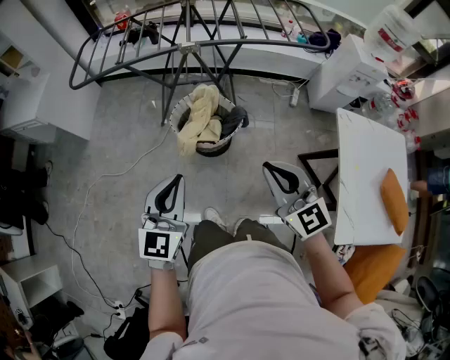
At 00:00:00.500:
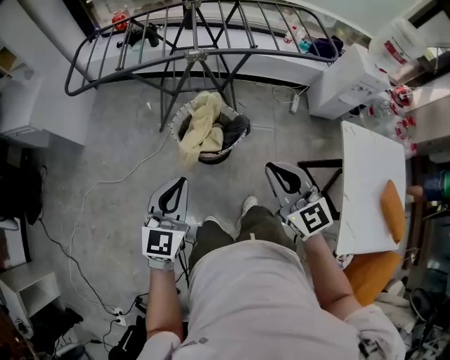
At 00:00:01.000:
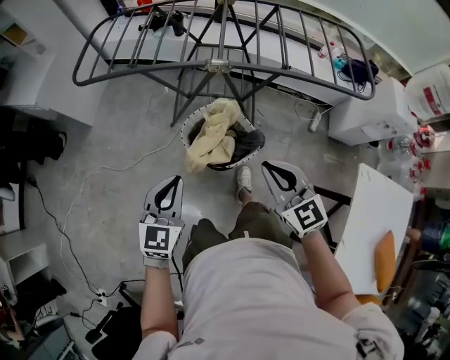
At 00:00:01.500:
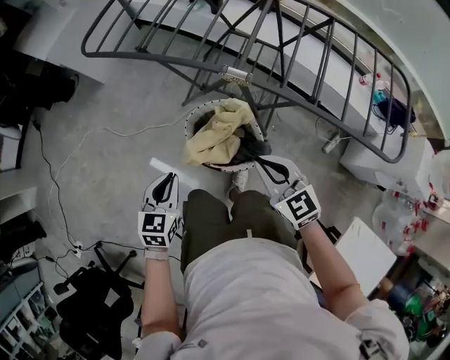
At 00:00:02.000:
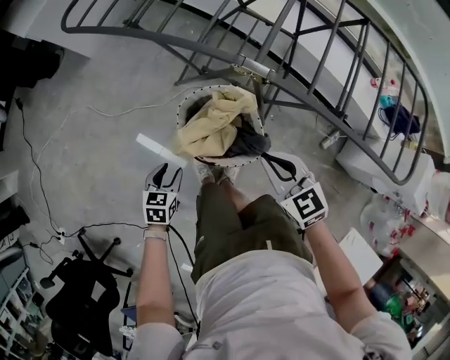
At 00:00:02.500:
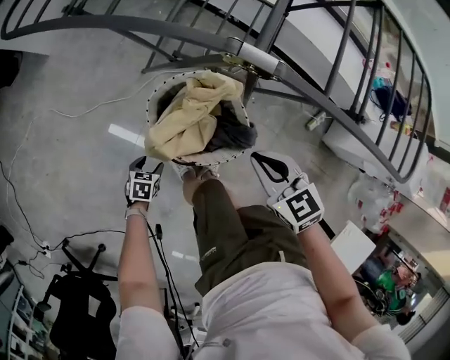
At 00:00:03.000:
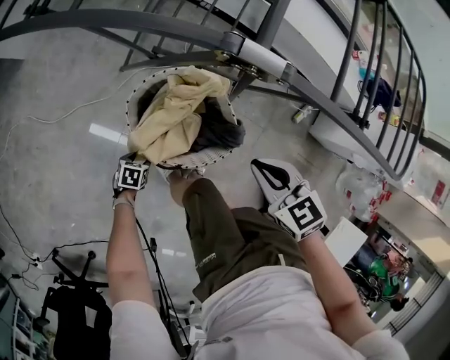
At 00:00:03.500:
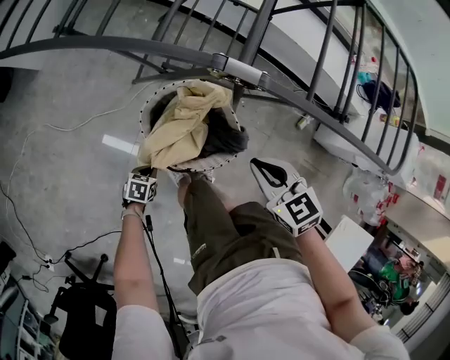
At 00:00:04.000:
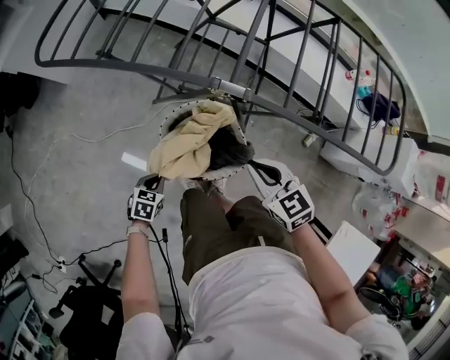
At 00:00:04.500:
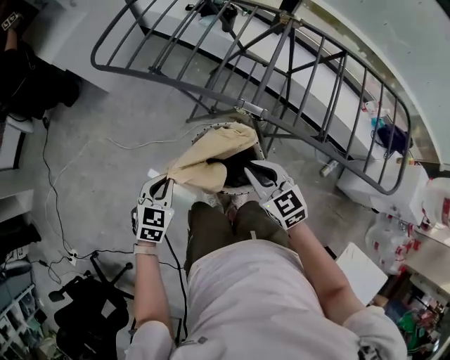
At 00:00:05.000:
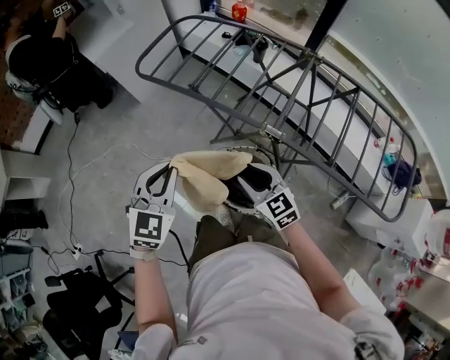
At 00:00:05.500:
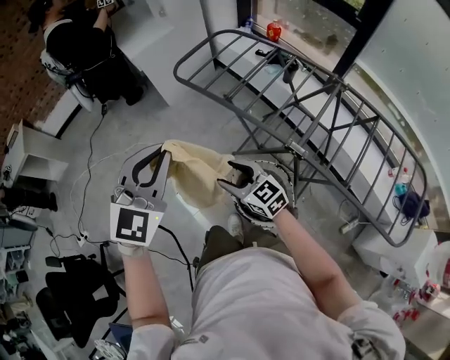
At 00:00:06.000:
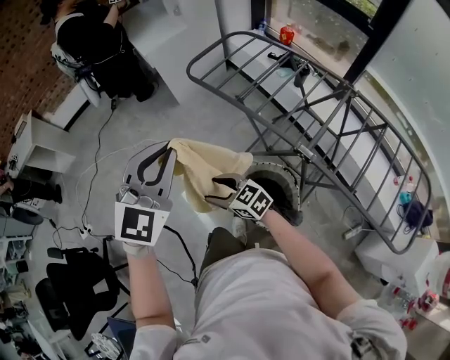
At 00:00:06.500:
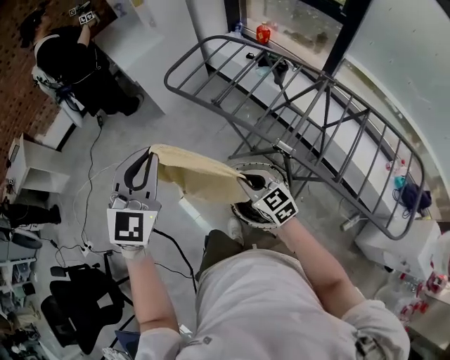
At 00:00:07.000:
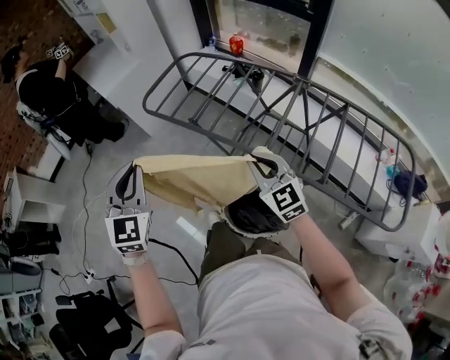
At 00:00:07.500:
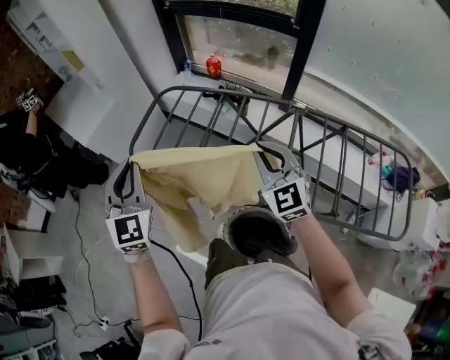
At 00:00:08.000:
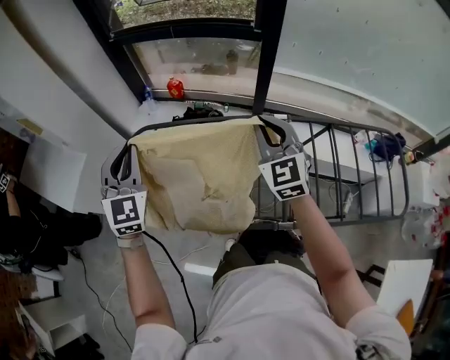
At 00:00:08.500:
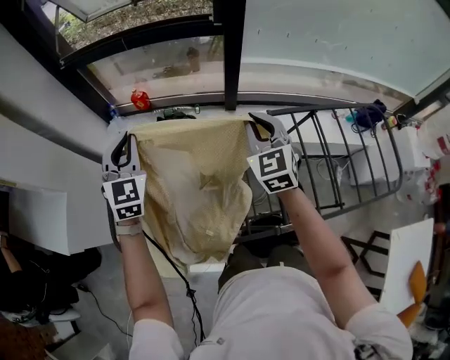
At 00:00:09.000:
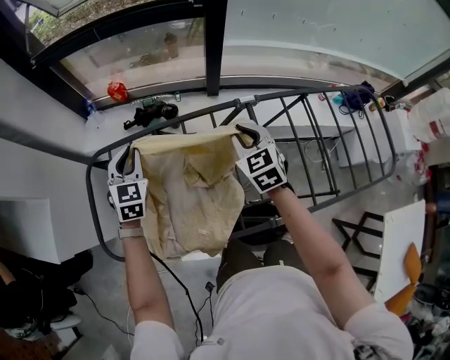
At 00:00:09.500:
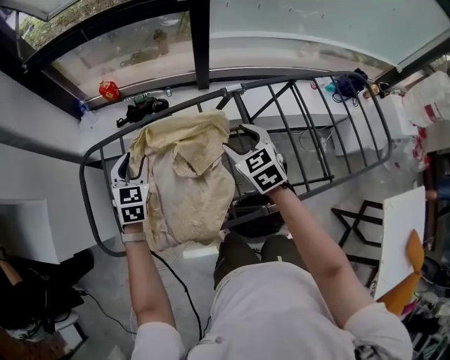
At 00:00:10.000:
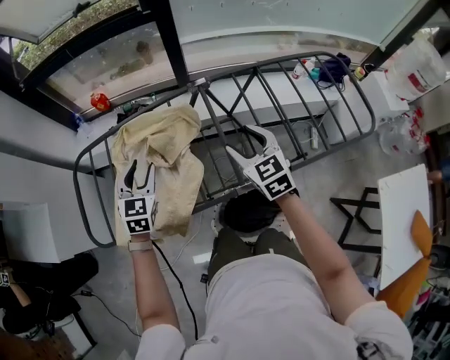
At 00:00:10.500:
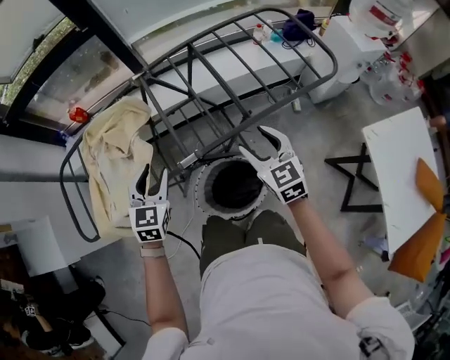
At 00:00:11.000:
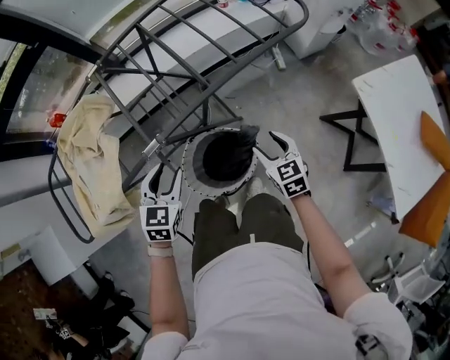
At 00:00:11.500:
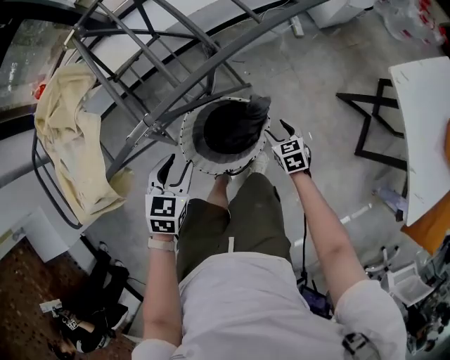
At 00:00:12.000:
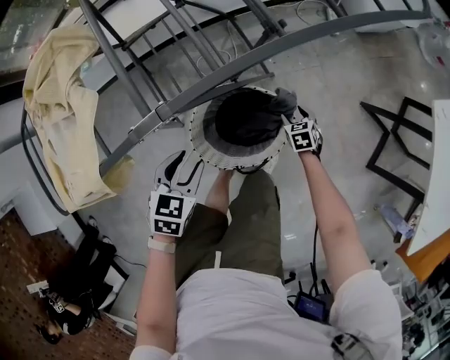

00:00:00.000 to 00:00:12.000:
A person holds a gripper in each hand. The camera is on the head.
00:00:00.000 to 00:00:02.000: The left gripper goes about 35 cm downward, points its fingers some 50 degrees further downward, and opens. The right gripper shifts by roughly 50 cm, and turns by approximately 40 degrees.
00:00:02.000 to 00:00:04.000: The right gripper reaches roughly 10 cm downward, then returns. The left gripper moves roughly 30 cm downward and comes back, turns by some 20 degrees, and closes its fingers.
00:00:04.000 to 00:00:06.000: The left gripper heads upward, covering roughly 60 cm, and tips its fingers upward by approximately 50 degrees, while the right gripper shifts by approximately 35 cm, turns by some 50 degrees, and opens up.
00:00:06.000 to 00:00:08.000: Both grippers are carried approximately 50 cm. The right gripper rotates about 90 degrees, and closes its fingers.
00:00:08.000 to 00:00:10.000: The right gripper shifts roughly 25 cm downward, to the right and backward, changes its angle by roughly 30 degrees, and opens up, while the left gripper moves downward and to the right, roughly 25 cm, swivels some 30 degrees, and opens its fingers.
00:00:10.000 to 00:00:12.000: The right gripper is displaced downward by approximately 60 cm, and tips its fingers downward by about 40 degrees. Meanwhile the left gripper changes place by roughly 50 cm, and angles its fingers downward, by about 30 degrees.

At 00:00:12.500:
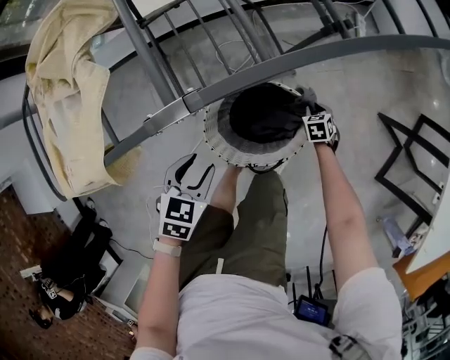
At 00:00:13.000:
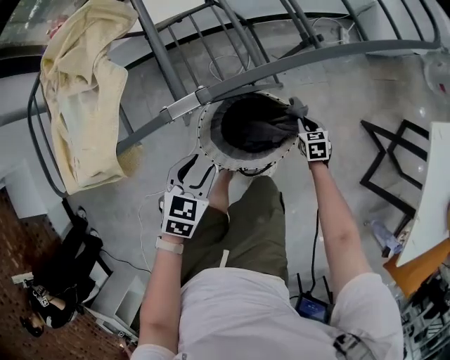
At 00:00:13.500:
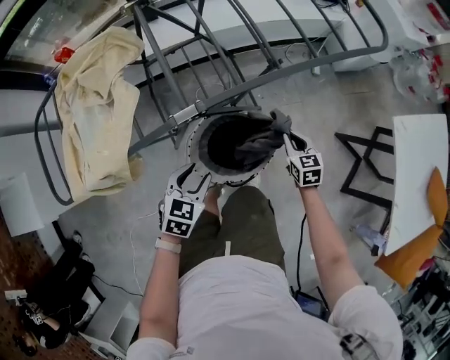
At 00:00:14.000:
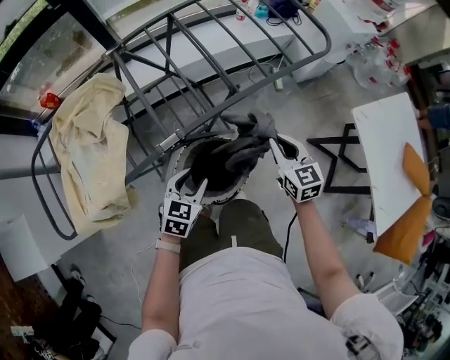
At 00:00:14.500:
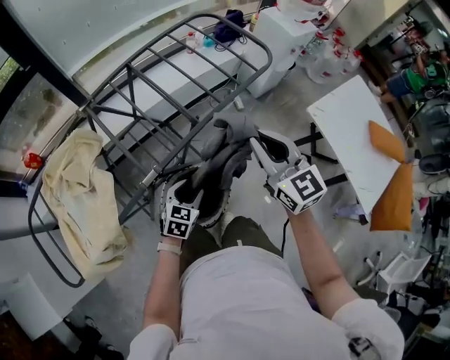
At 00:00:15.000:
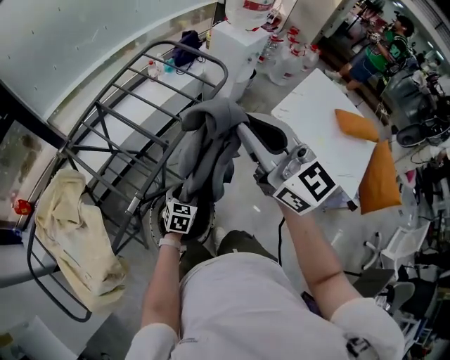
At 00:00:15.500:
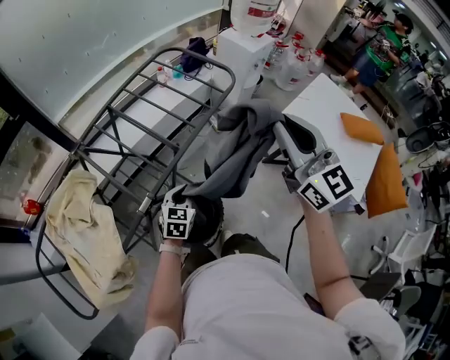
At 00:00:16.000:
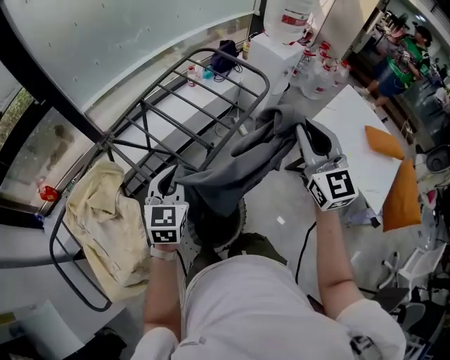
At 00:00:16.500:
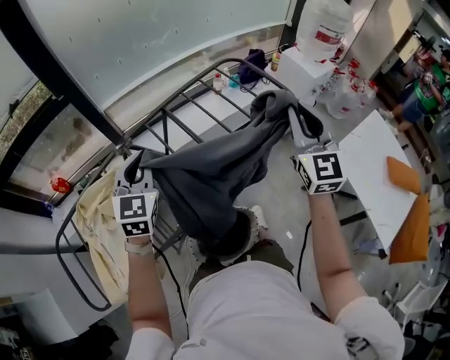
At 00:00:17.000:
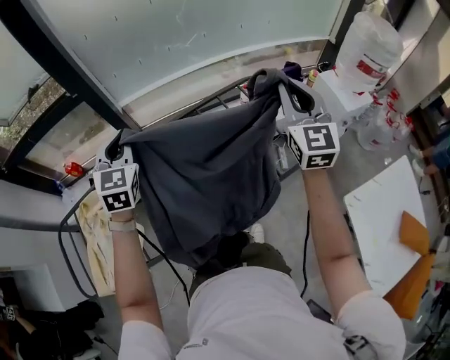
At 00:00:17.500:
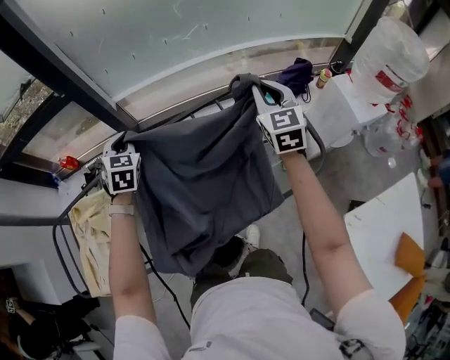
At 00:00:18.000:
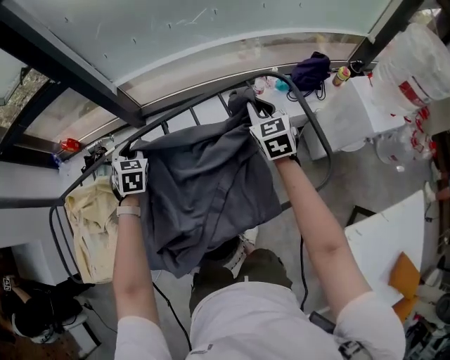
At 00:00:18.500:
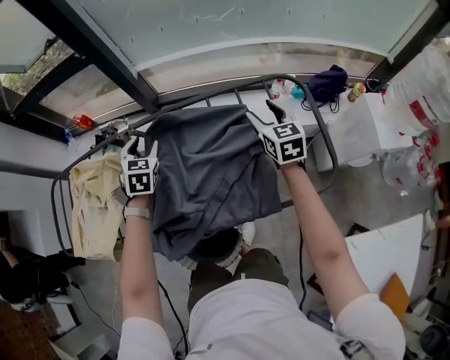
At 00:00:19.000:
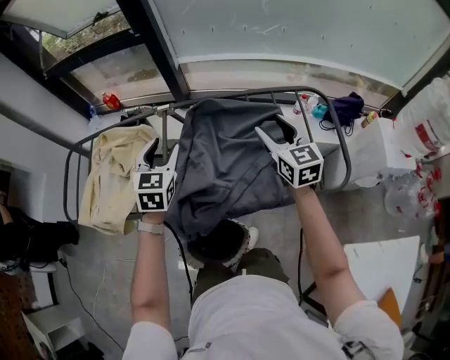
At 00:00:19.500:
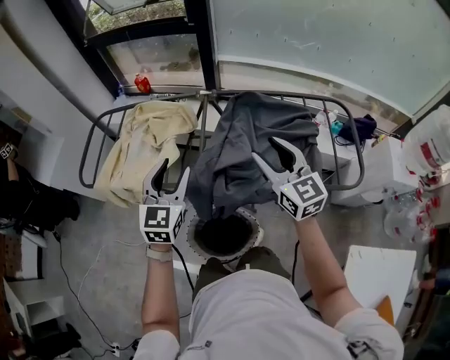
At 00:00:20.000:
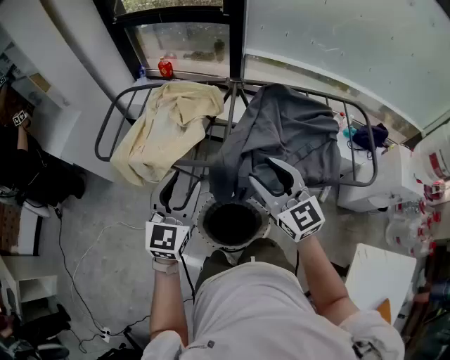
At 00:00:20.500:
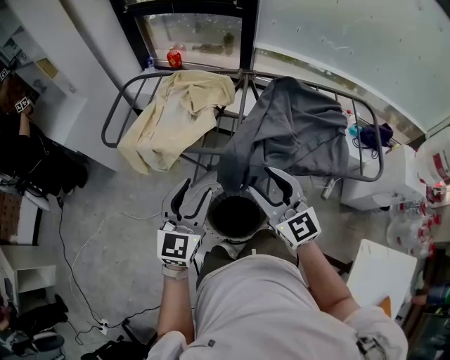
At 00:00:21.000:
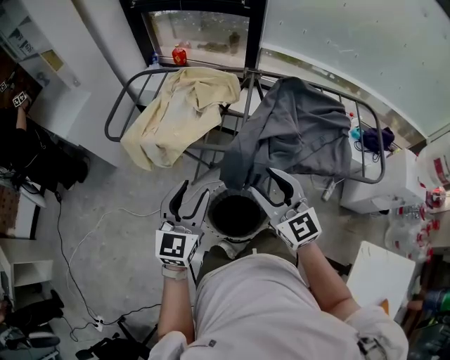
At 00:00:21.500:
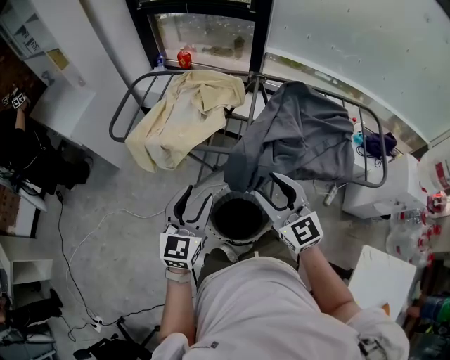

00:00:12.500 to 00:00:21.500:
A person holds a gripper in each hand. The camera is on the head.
00:00:12.500 to 00:00:14.500: The left gripper shifts about 20 cm upward, to the right and forward, and turns by approximately 30 degrees; the right gripper travels upward by about 70 cm, and tips its fingers upward by some 60 degrees.
00:00:14.500 to 00:00:17.000: The right gripper ends up about 40 cm from where it was, and rotates approximately 20 degrees, while the left gripper changes place by some 50 cm, turns by roughly 50 degrees, and closes up.
00:00:17.000 to 00:00:19.500: The right gripper ends up roughly 30 cm from where it was, rotates roughly 50 degrees, and opens. The left gripper moves about 25 cm downward and comes back, turns by roughly 30 degrees, and opens its fingers.
00:00:19.500 to 00:00:21.500: The right gripper shifts approximately 25 cm to the left and backward; the left gripper heads backward and to the left, covering some 20 cm.

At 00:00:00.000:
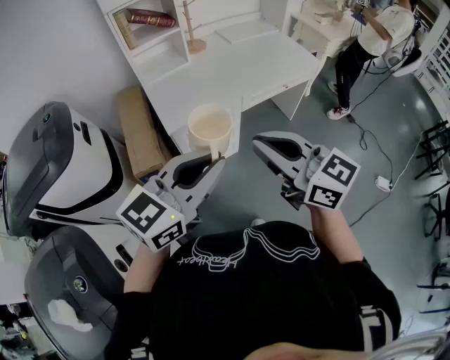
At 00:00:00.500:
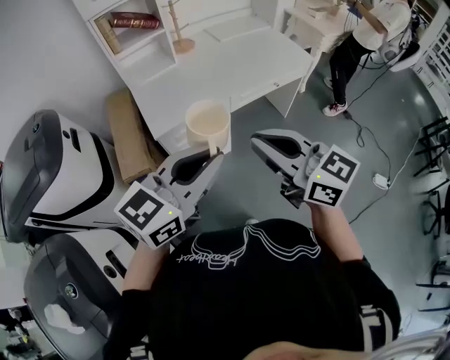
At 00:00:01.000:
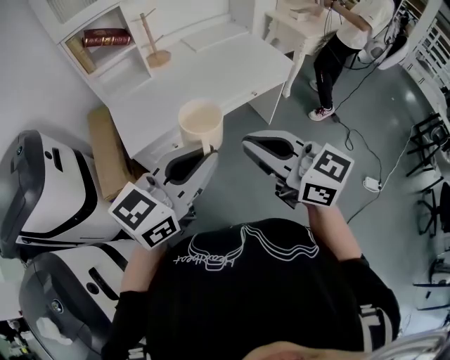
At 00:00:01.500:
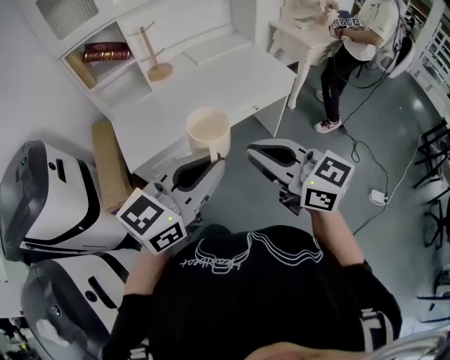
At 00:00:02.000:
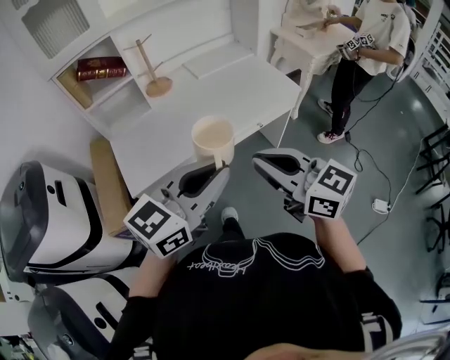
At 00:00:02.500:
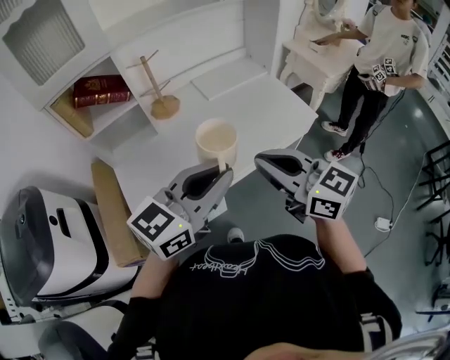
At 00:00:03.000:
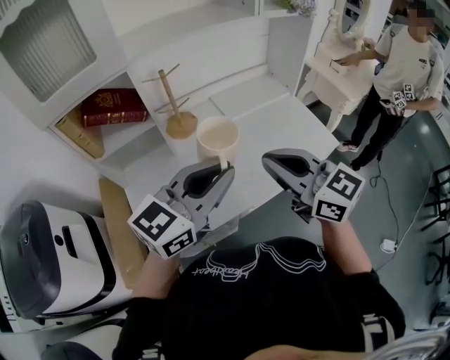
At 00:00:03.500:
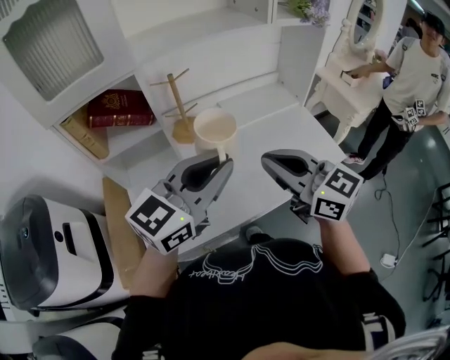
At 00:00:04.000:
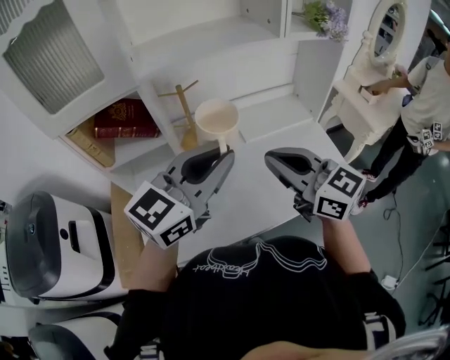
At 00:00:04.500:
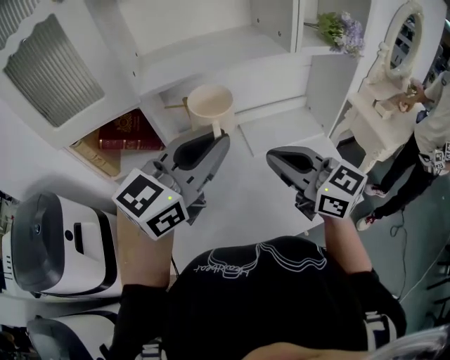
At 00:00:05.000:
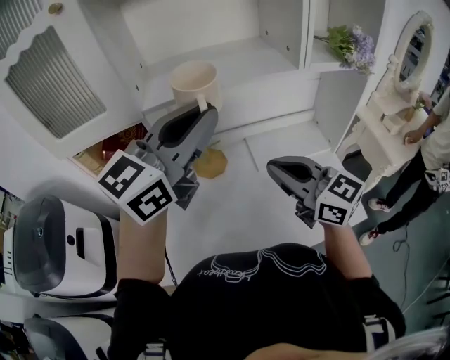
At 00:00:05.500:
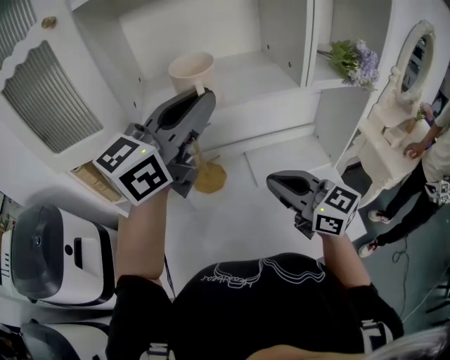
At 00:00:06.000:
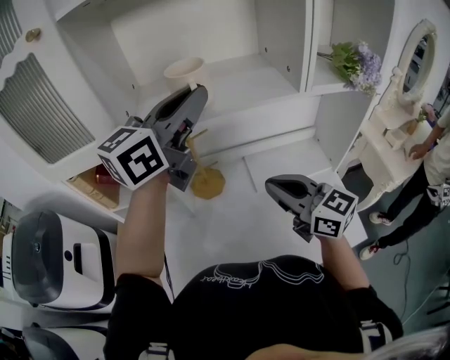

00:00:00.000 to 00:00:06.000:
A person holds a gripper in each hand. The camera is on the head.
00:00:00.000 to 00:00:02.000: Both grippers move forward and to the right, approximately 25 cm.
00:00:02.000 to 00:00:04.000: Both grippers move forward, about 35 cm.
00:00:04.000 to 00:00:06.000: The right gripper shifts about 15 cm forward. Meanwhile the left gripper is displaced forward and upward by about 25 cm.
